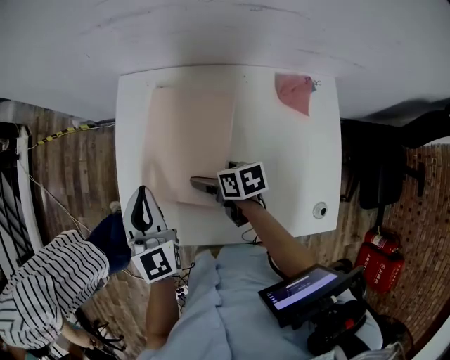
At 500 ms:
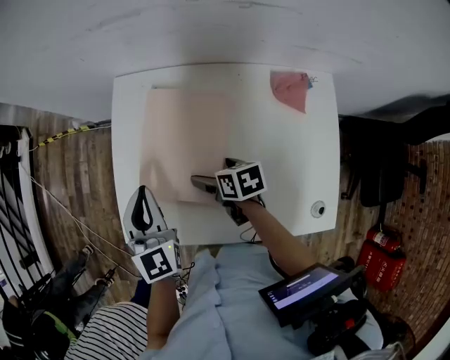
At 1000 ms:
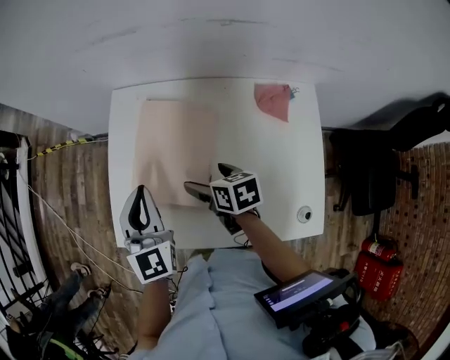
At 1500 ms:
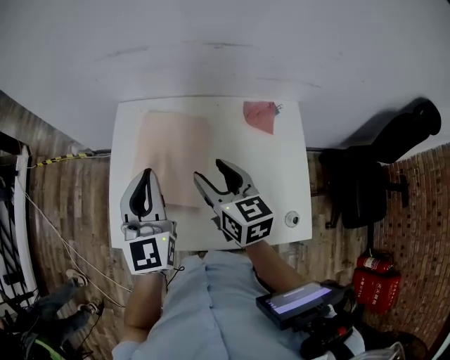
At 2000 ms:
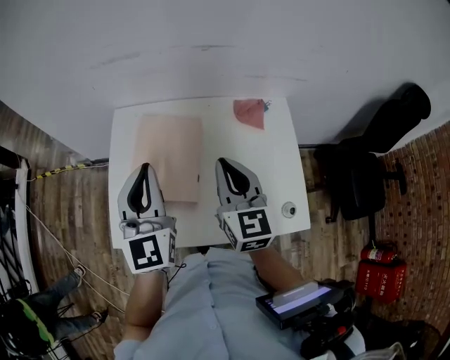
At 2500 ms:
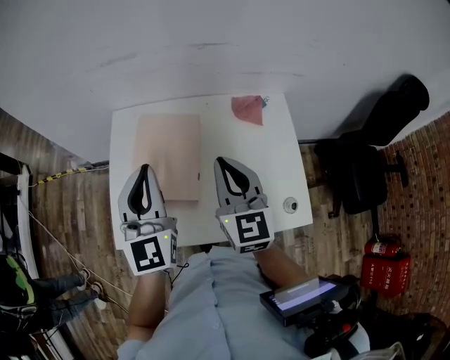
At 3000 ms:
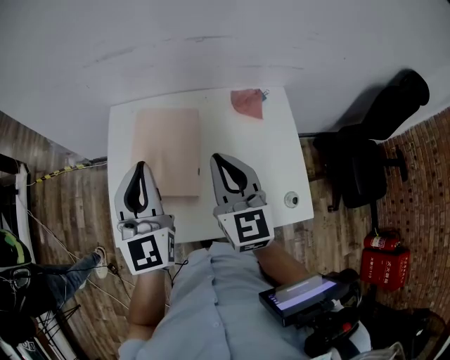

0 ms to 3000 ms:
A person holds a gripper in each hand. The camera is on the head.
0 ms to 1500 ms: The right gripper goes roughly 20 cm upward, changes its angle by about 50 degrees, and closes its fingers. The left gripper is displaced upward, to the right and backward by approximately 15 cm.
1500 ms to 3000 ms: The right gripper shifts approximately 5 cm upward, rotates approximately 30 degrees, and closes its fingers.

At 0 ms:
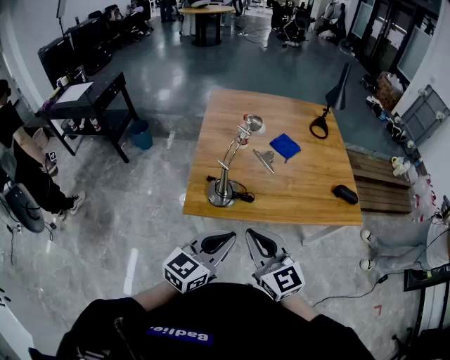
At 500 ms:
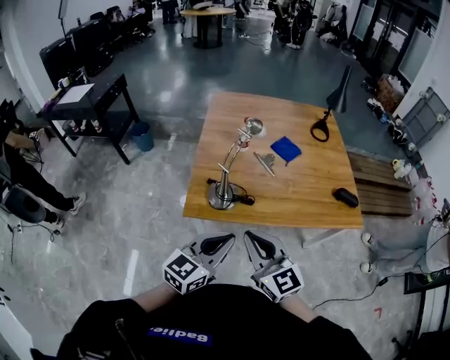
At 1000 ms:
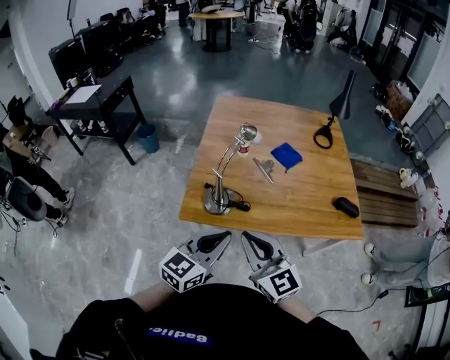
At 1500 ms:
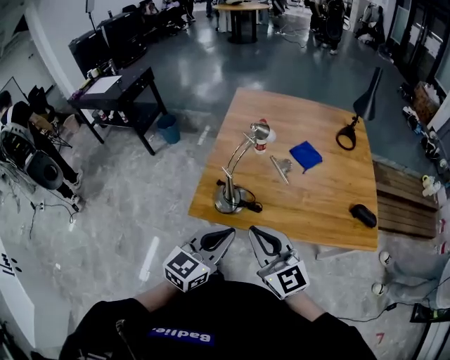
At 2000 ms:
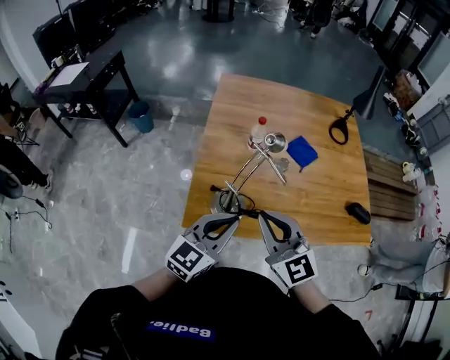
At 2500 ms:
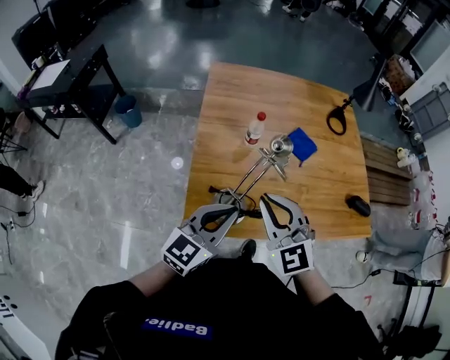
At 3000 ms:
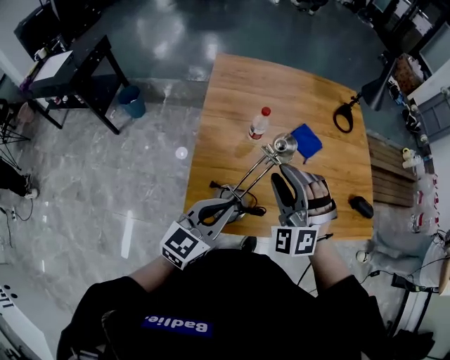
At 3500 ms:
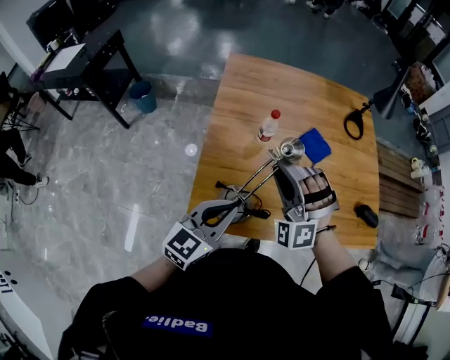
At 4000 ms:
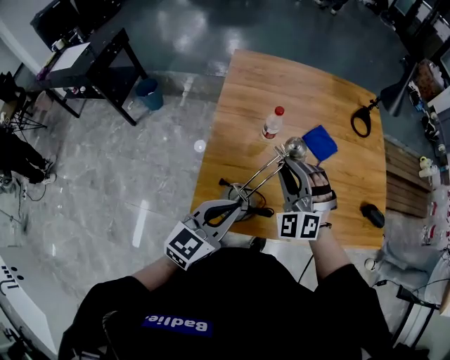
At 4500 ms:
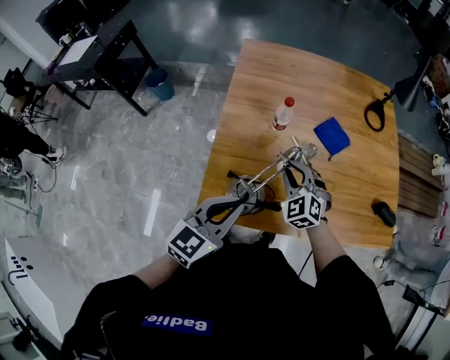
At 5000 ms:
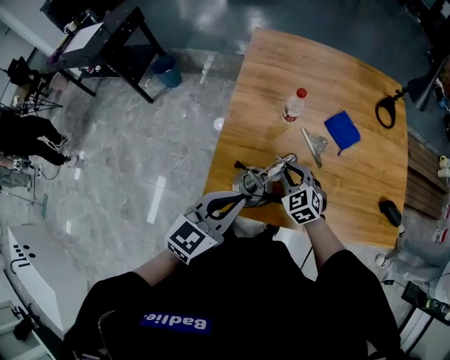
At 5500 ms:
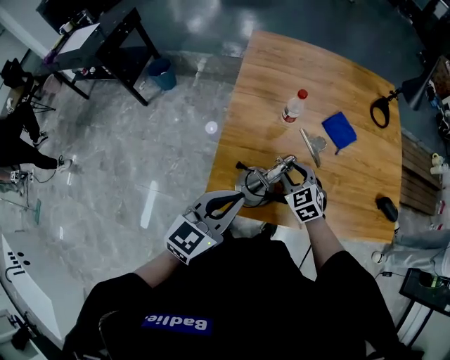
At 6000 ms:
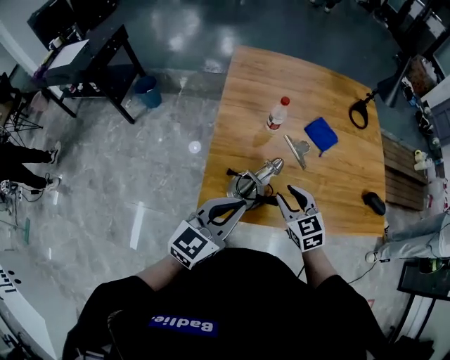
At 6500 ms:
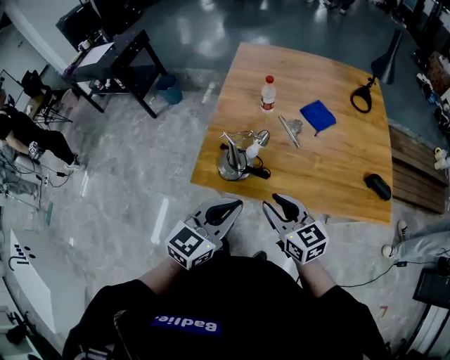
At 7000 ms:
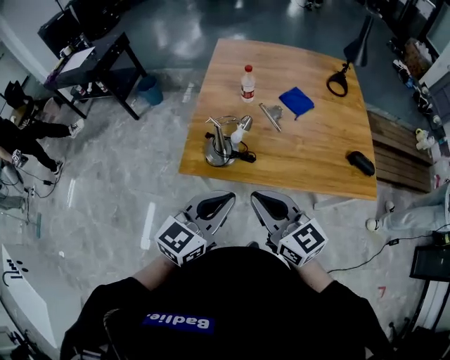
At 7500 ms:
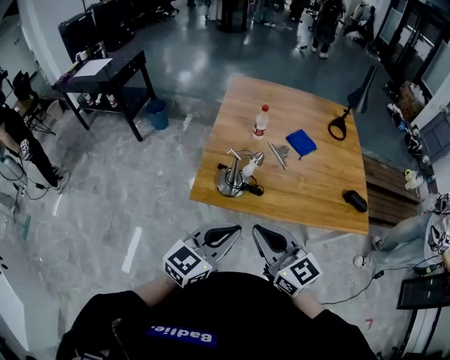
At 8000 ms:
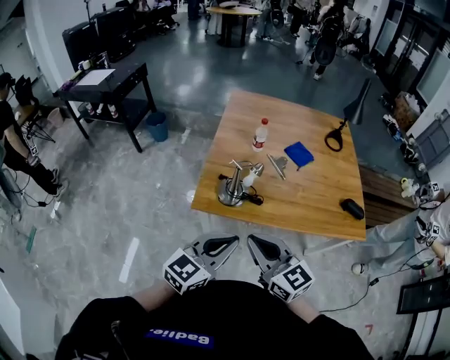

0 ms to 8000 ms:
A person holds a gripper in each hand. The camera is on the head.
0 ms to 2000 ms: The grippers both shift forward by about 20 cm.
2000 ms to 4000 ms: The left gripper moves forward, about 5 cm, while the right gripper moves forward, approximately 20 cm, rotates around the line of its fingers by roughly 50 degrees, counterclockwise from behind, and opens its fingers.
4000 ms to 6000 ms: The left gripper changes place by about 5 cm. Meanwhile the right gripper moves downward and backward, about 15 cm, and rotates around the line of its fingers by about 60 degrees, clockwise from behind.
6000 ms to 8000 ms: The right gripper heads backward and upward, covering some 30 cm, rotates approximately 30 degrees, and closes up. Meanwhile the left gripper is displaced backward by roughly 25 cm.

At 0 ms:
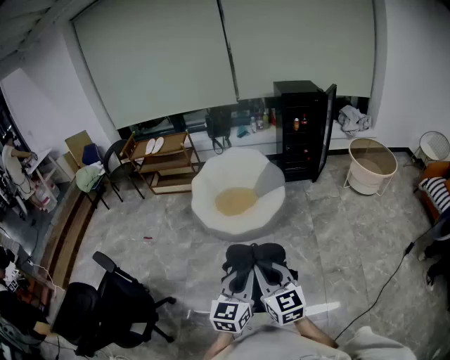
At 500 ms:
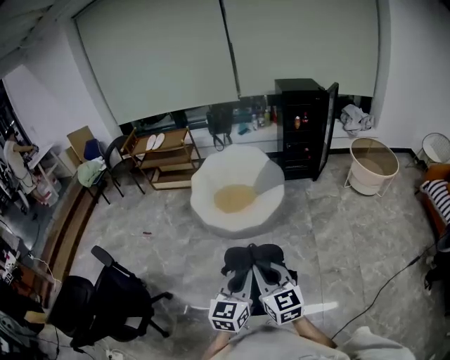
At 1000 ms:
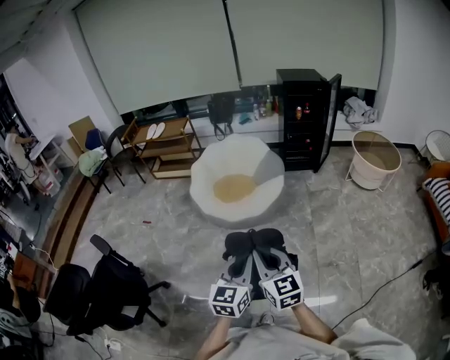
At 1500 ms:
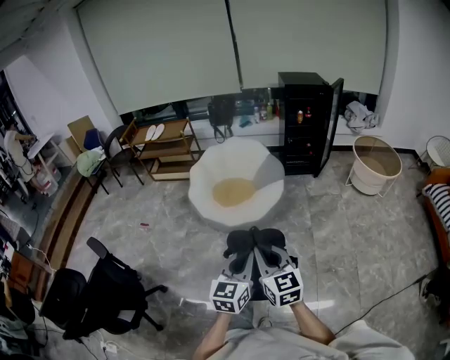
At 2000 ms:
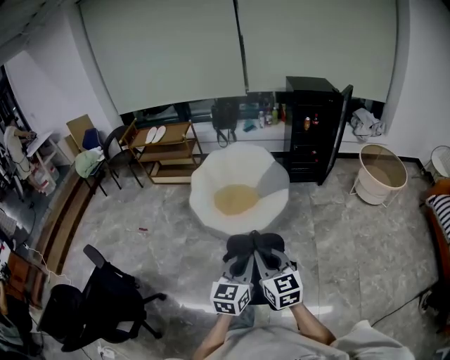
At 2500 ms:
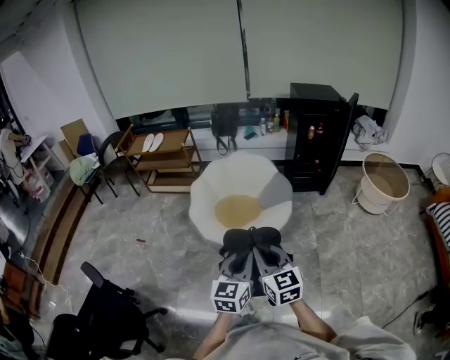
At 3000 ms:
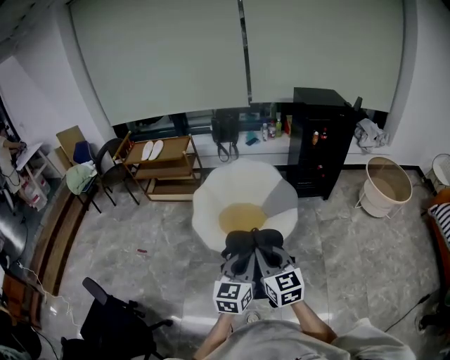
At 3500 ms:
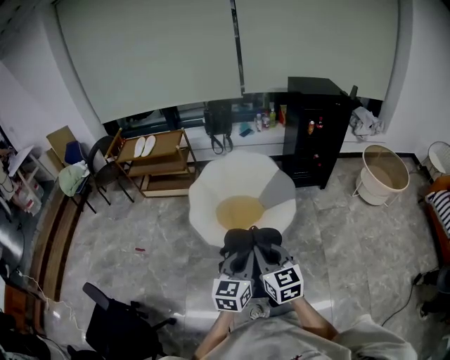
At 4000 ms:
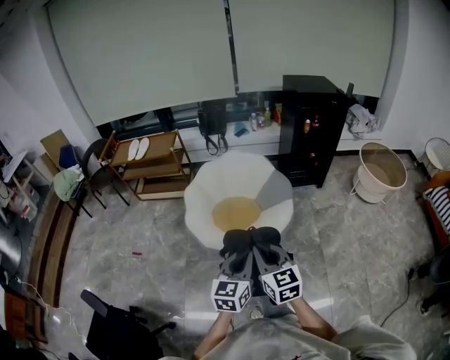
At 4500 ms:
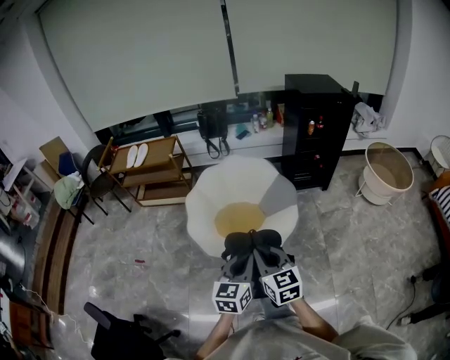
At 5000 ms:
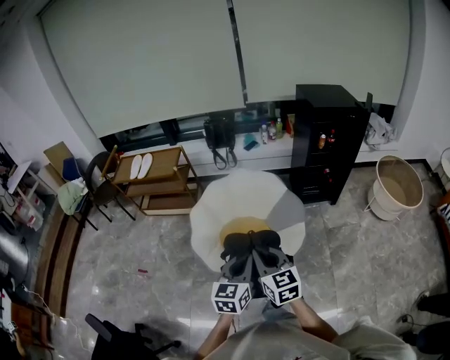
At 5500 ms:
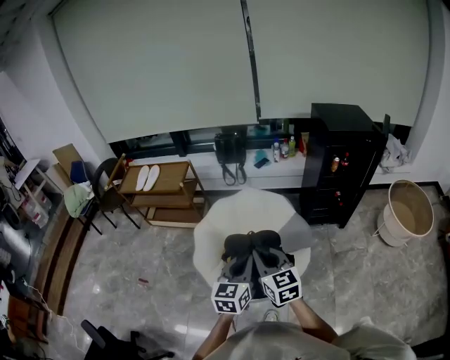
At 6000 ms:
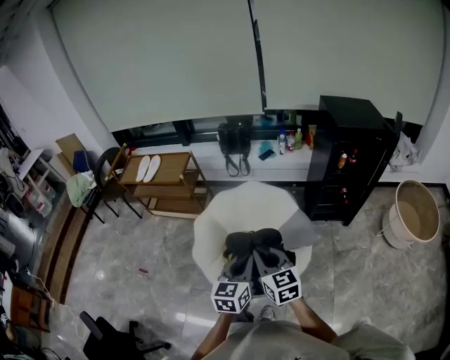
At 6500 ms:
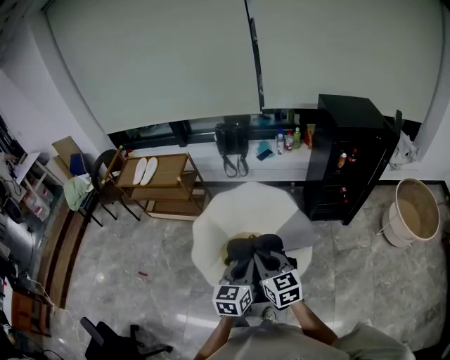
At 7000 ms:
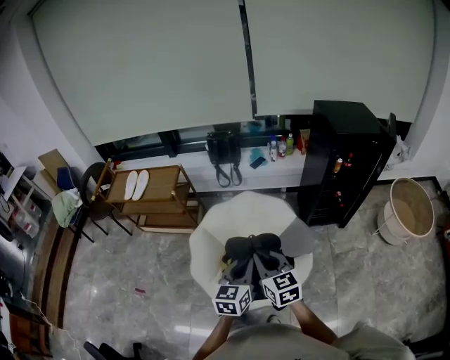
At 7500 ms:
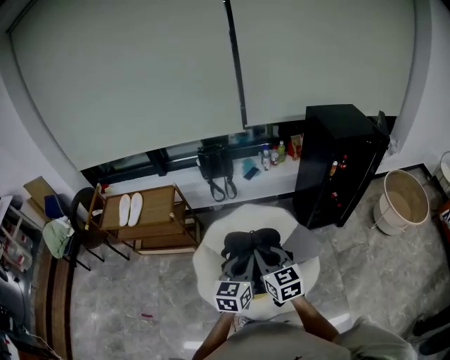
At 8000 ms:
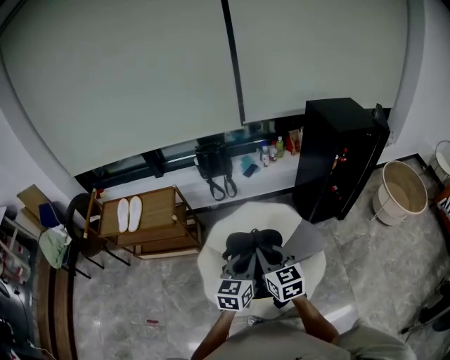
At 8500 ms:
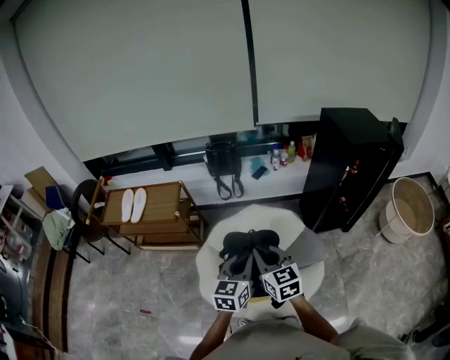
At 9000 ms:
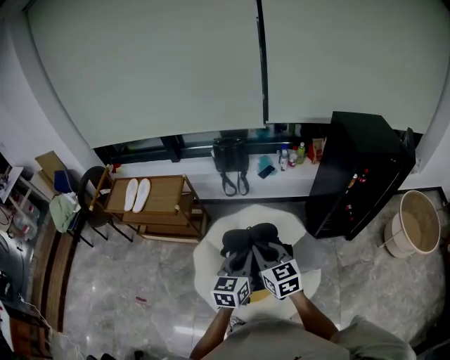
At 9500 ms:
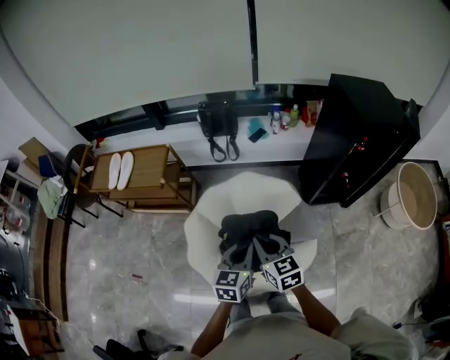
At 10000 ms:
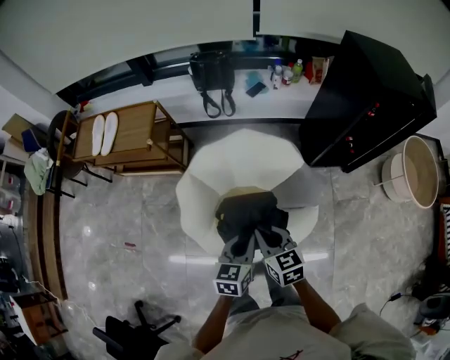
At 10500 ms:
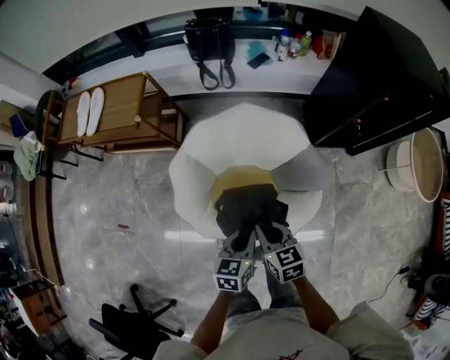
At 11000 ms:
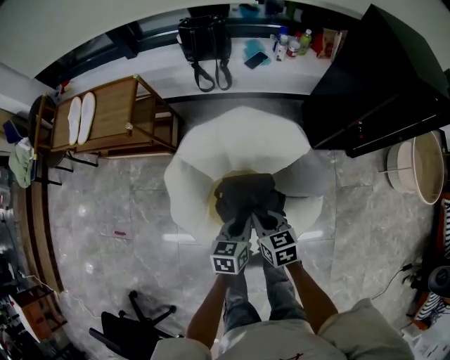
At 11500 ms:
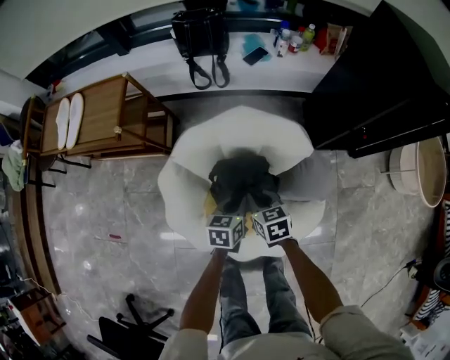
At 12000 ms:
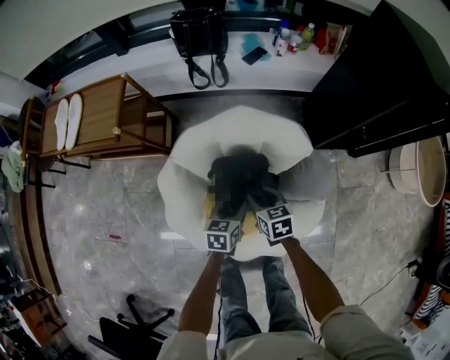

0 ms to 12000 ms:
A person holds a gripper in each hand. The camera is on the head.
0 ms to 2000 ms: Both grippers travel together forward, some 15 cm.
2000 ms to 4000 ms: Both grippers travel together forward and to the left, roughly 25 cm.
4000 ms to 6000 ms: The two grippers go about 35 cm forward.
6000 ms to 8000 ms: The two grippers go some 25 cm forward and to the left.
8000 ms to 10000 ms: Both grippers travel together downward and to the right, roughly 15 cm. The right gripper turns by about 20 degrees; the left gripper turns by roughly 20 degrees.
10000 ms to 12000 ms: The two grippers go some 30 cm downward and forward. The right gripper opens, while the left gripper opens.

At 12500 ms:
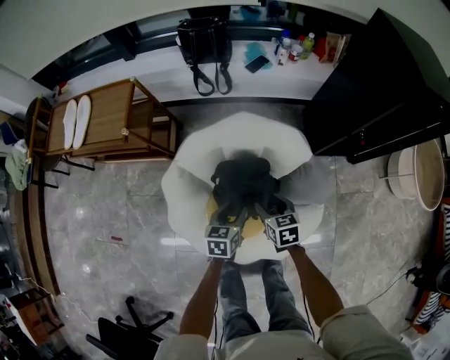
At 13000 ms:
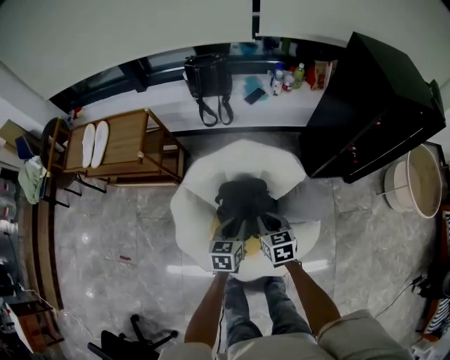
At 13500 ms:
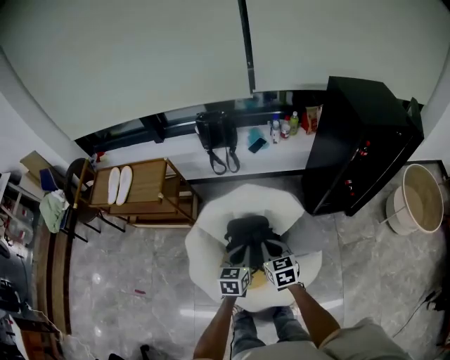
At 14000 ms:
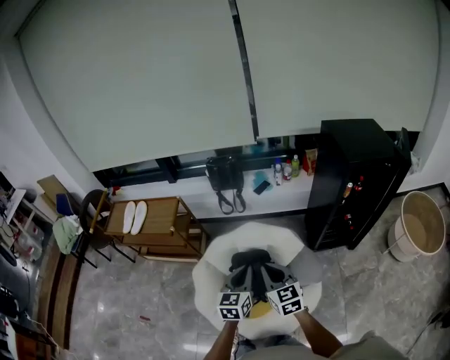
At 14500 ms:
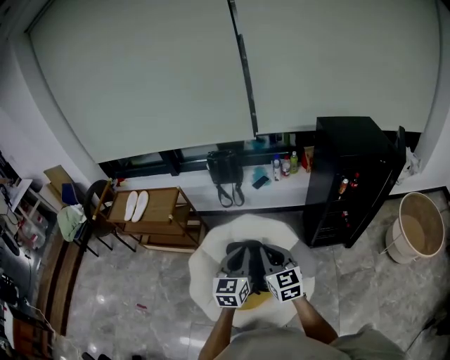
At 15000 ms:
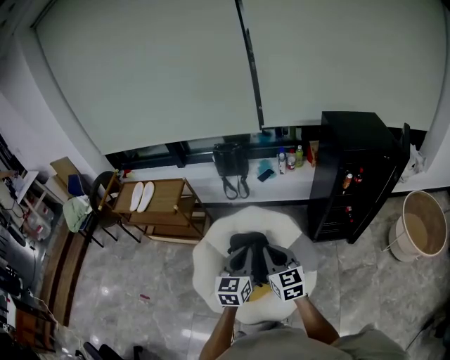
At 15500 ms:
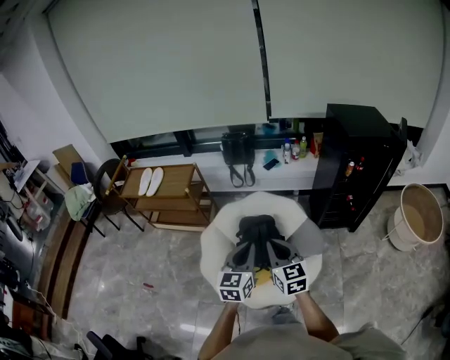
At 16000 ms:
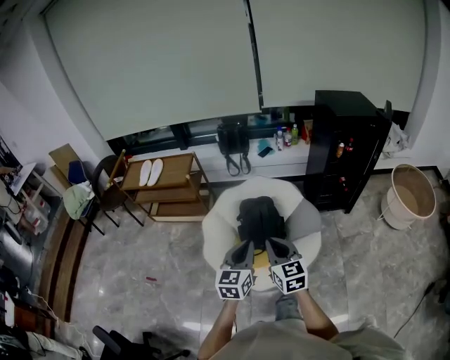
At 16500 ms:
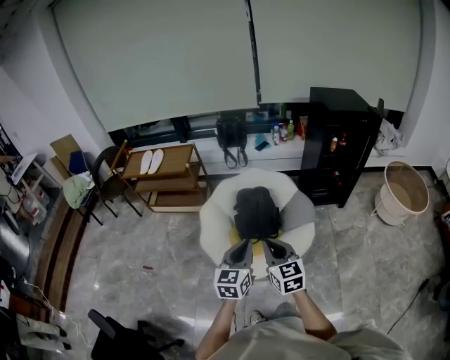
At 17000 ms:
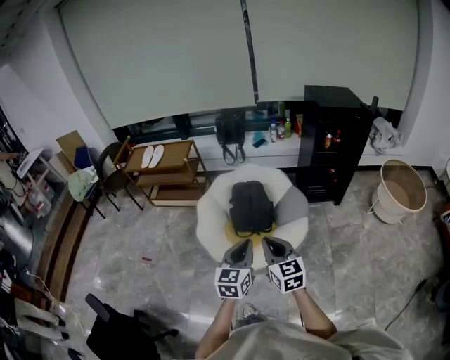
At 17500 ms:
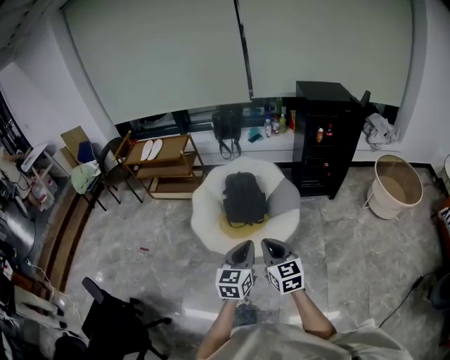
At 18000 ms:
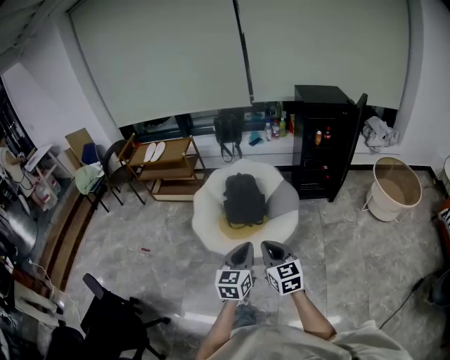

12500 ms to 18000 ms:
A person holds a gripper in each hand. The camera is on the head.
12500 ms to 14500 ms: The two grippers go approximately 40 cm upward. The right gripper angles its fingers upward, by some 40 degrees, and closes. Meanwhile the left gripper tilts its fingers roughly 30 degrees upward, and closes.
14500 ms to 16000 ms: The two grippers go approximately 30 cm backward and to the left.
16000 ms to 18000 ms: The two grippers go approximately 30 cm backward and to the right.
